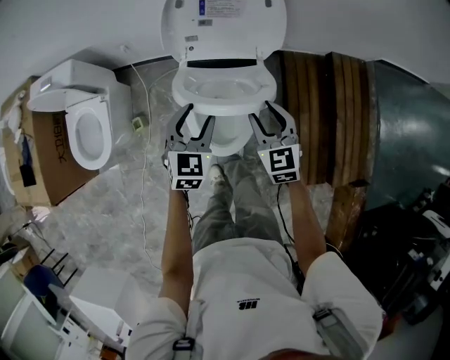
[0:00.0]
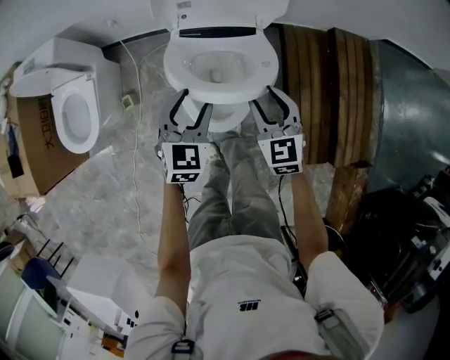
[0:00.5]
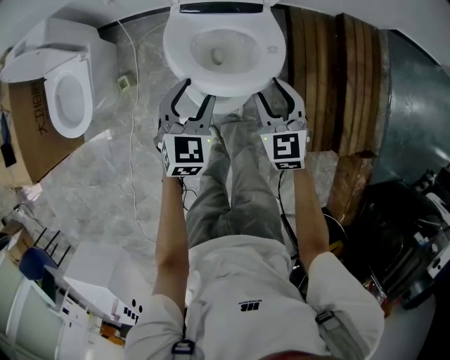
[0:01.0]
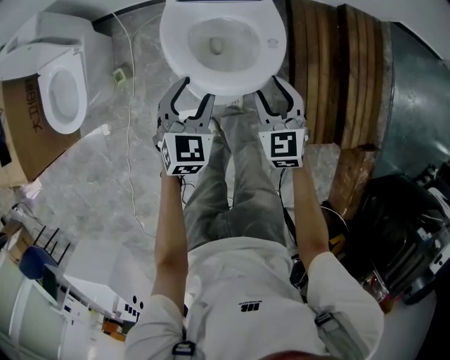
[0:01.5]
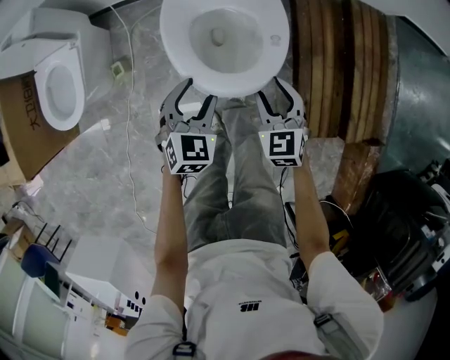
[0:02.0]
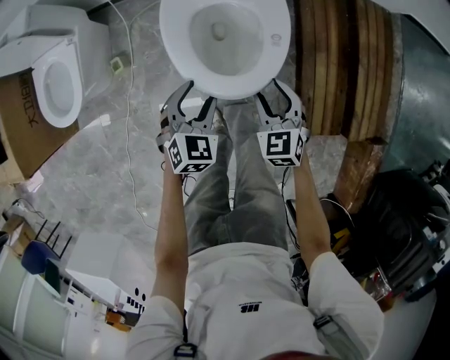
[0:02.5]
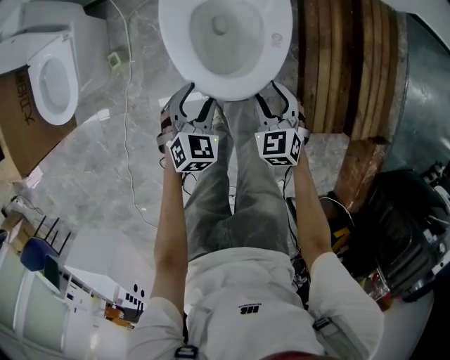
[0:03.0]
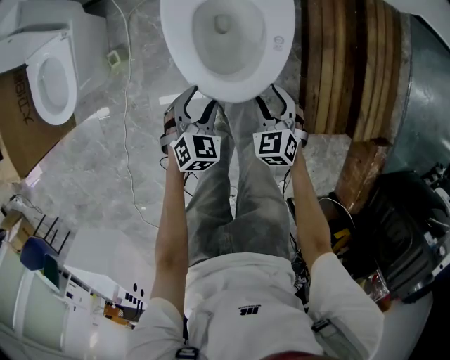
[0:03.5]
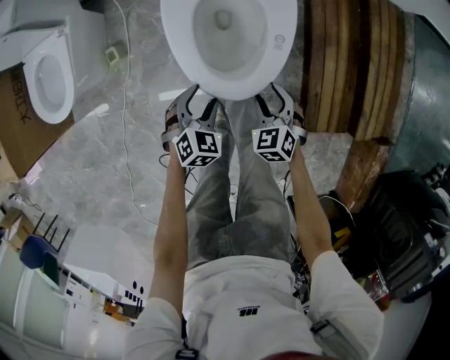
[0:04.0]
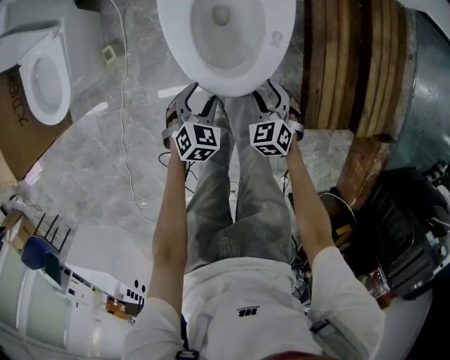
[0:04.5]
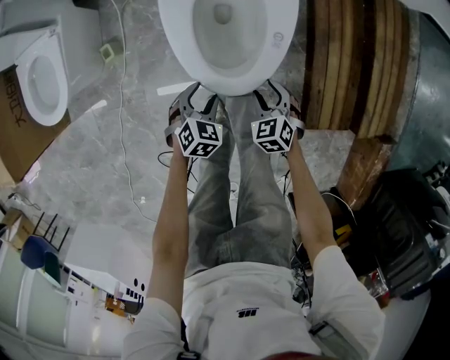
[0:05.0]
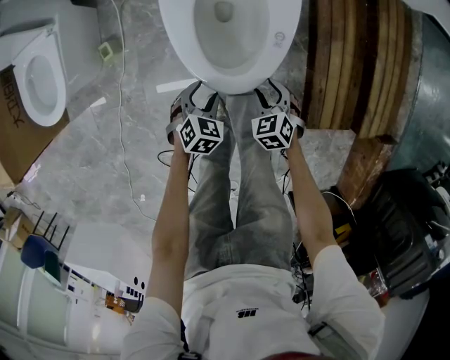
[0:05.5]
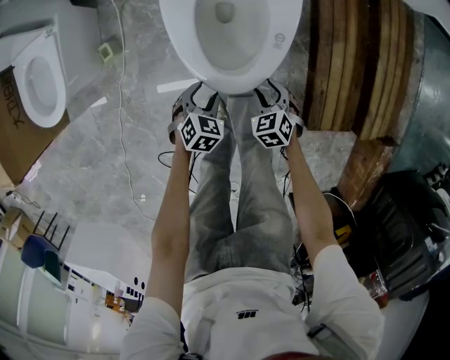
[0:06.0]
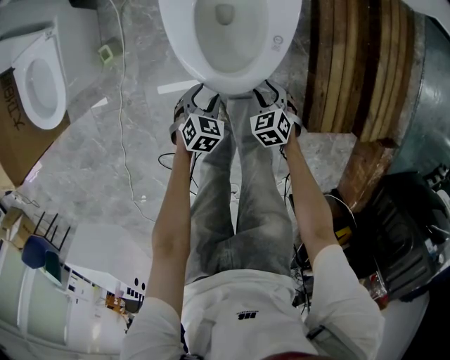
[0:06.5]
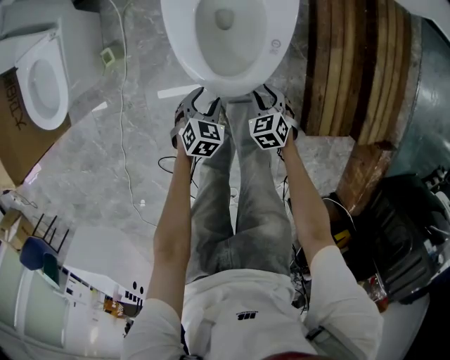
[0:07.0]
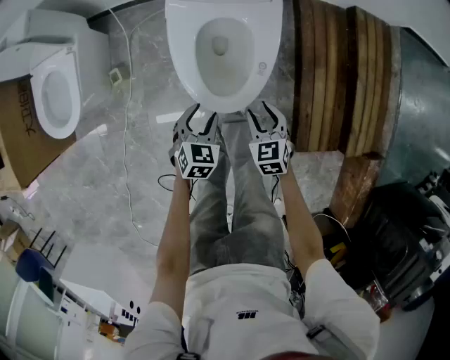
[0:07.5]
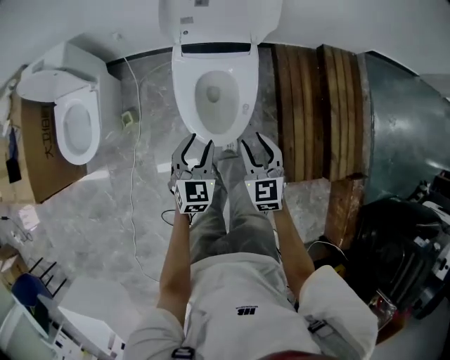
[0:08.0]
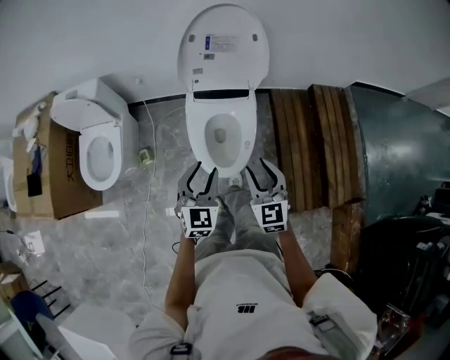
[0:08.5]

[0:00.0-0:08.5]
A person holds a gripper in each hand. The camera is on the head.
0:00.0 to 0:02.0: The two grippers go approximately 20 cm downward and backward.
0:02.0 to 0:04.0: The right gripper travels downward by roughly 15 cm. Meanwhile the left gripper shifts some 15 cm downward and backward.
0:04.0 to 0:06.5: Both grippers travel together downward, approximately 15 cm.
0:06.5 to 0:08.5: Both grippers travel together upward, about 50 cm. The left gripper points its fingers roughly 40 degrees further upward, while the right gripper angles its fingers upward, by some 40 degrees.

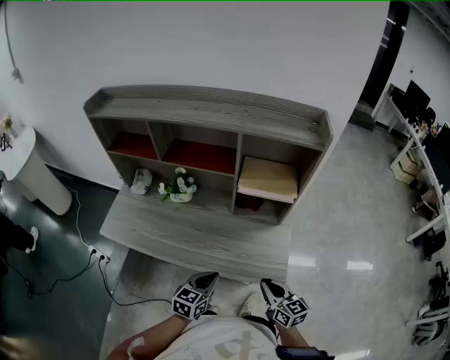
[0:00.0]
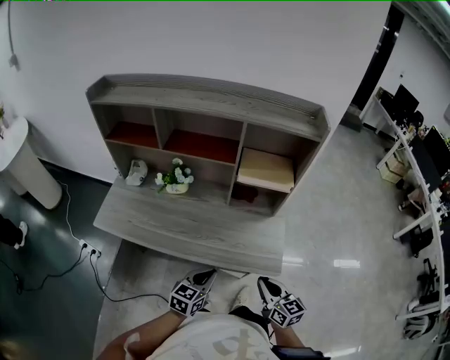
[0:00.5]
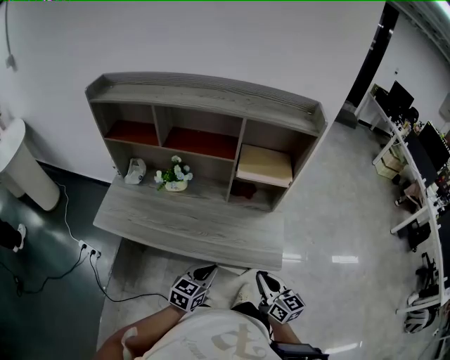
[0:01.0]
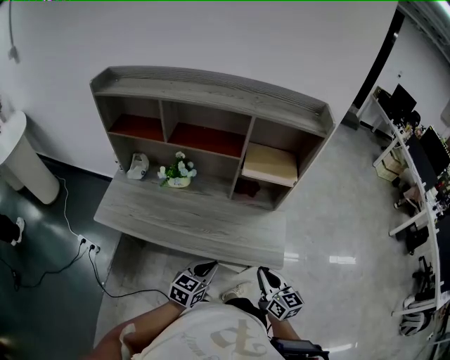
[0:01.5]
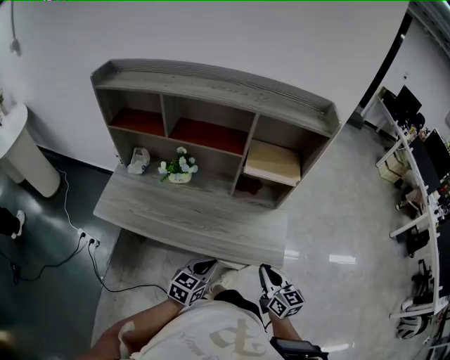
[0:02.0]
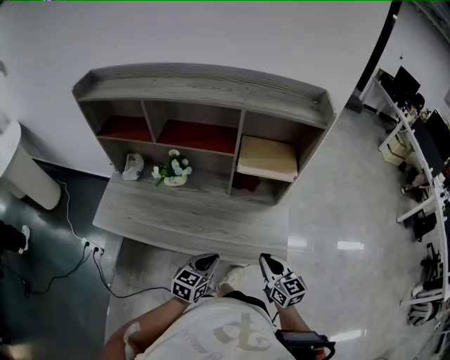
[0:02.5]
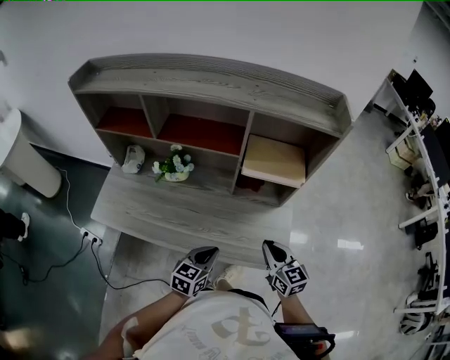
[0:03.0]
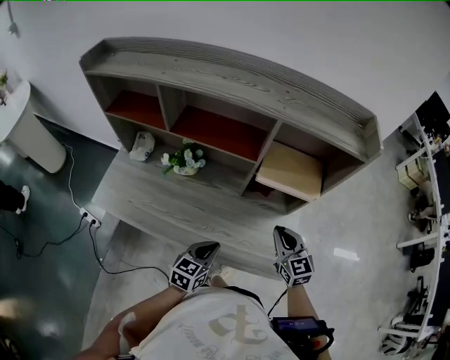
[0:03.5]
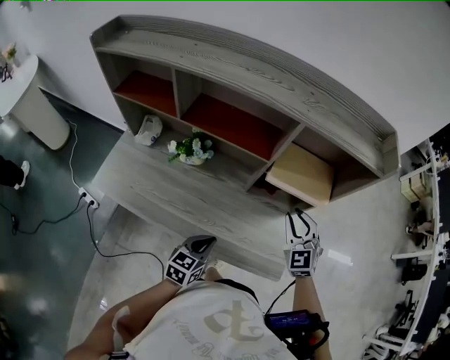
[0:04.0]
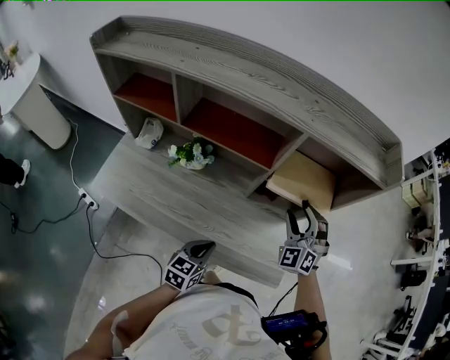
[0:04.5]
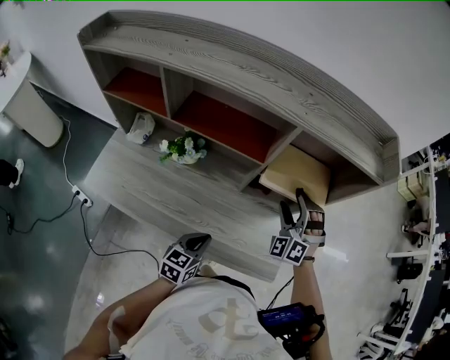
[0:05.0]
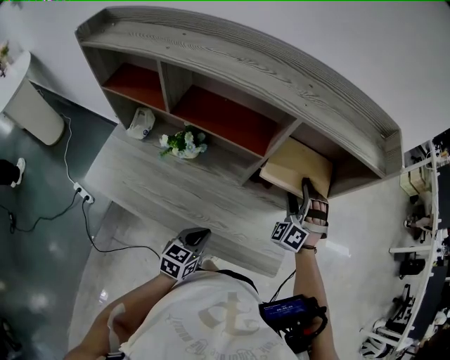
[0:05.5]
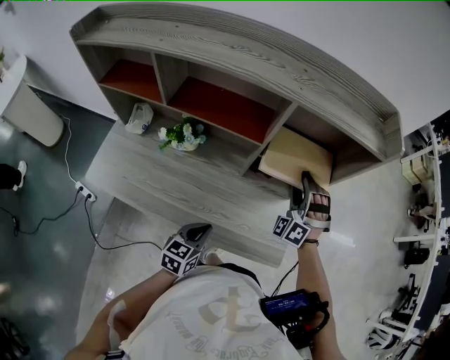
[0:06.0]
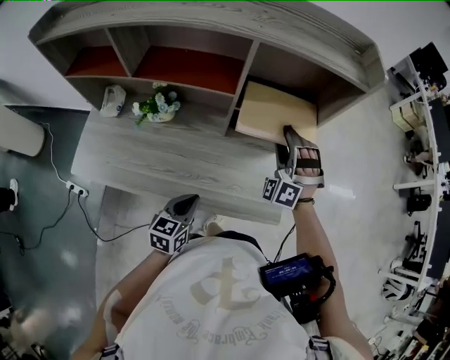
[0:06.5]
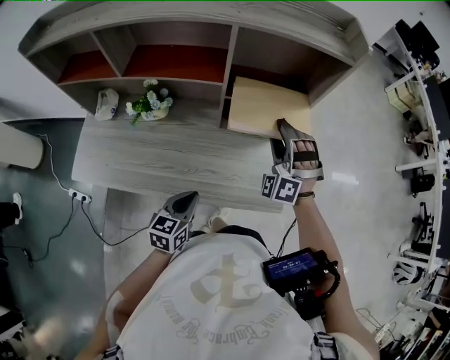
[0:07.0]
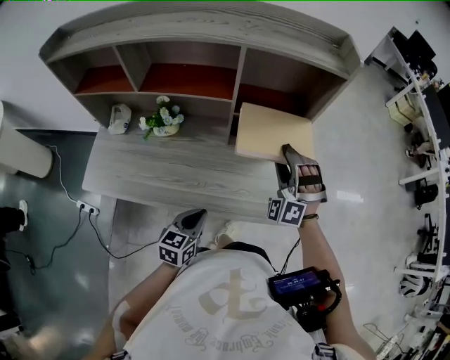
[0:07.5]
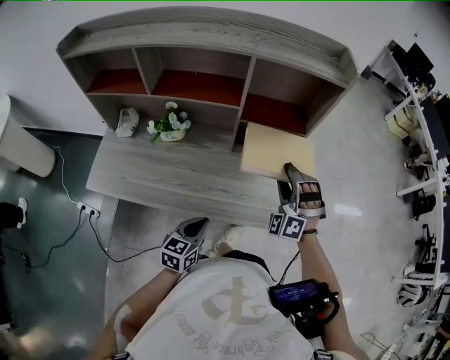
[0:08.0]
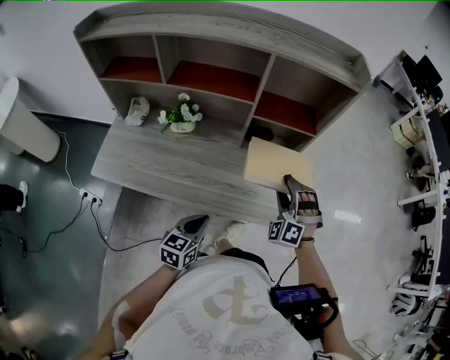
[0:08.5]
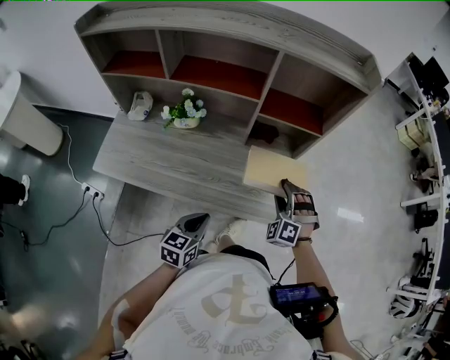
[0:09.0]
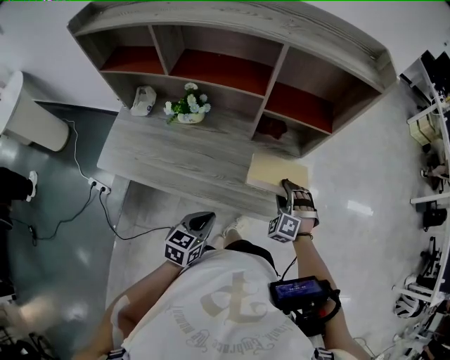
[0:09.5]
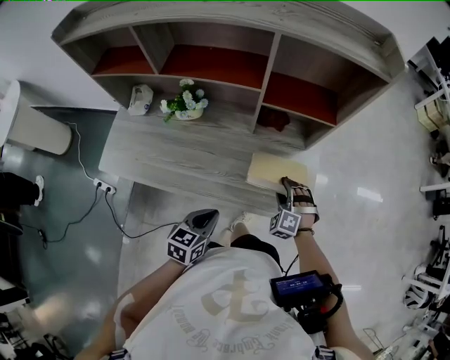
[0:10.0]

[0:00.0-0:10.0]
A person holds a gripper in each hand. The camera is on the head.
0:00.0 to 0:02.0: The left gripper shifts by roughly 5 cm, while the right gripper shifts by some 5 cm.
0:02.0 to 0:04.0: The left gripper heads forward, covering roughly 15 cm. The right gripper travels forward by some 30 cm, and rotates around the line of its fingers by about 50 degrees, counterclockwise from behind.
0:04.0 to 0:06.0: The right gripper moves forward, roughly 5 cm, twists roughly 50 degrees counterclockwise, seen from behind, and opens.
0:06.0 to 0:08.0: The right gripper goes about 15 cm backward, while the left gripper is displaced backward by approximately 10 cm.
0:08.0 to 0:10.0: The right gripper travels downward by some 25 cm, and turns by some 30 degrees.

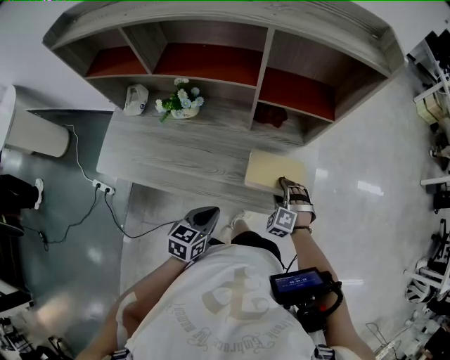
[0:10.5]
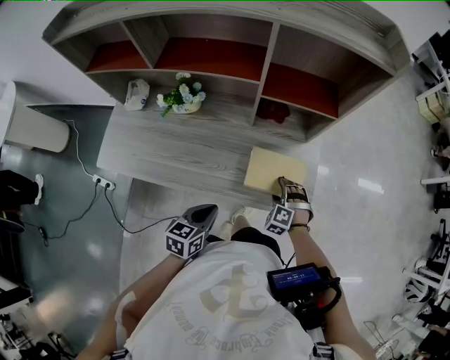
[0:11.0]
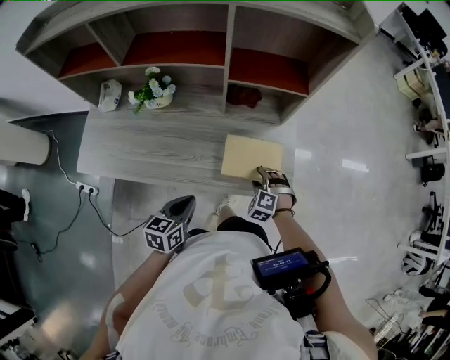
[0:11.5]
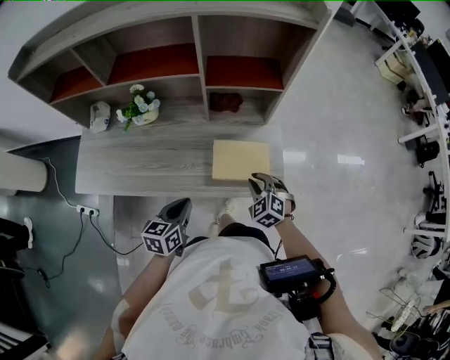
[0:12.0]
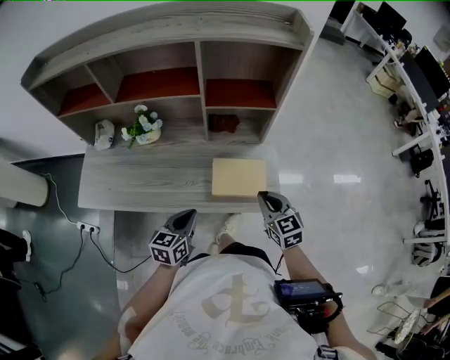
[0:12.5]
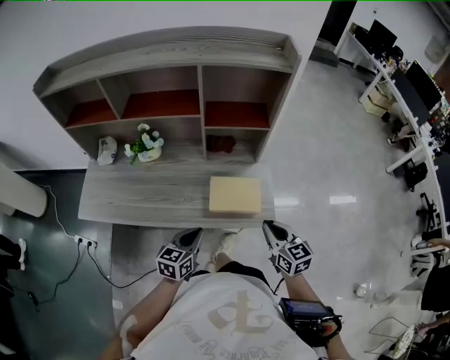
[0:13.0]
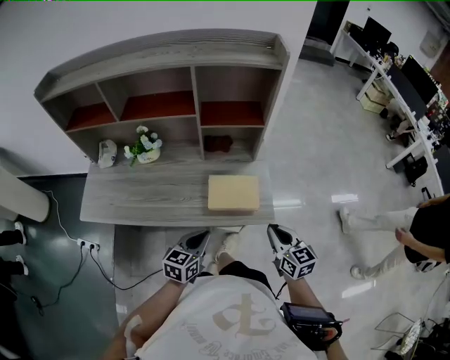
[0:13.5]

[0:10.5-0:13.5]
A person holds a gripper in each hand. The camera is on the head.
0:10.5 to 0:12.0: The right gripper moves some 5 cm, rotates roughly 30 degrees, and closes its fingers.
0:12.0 to 0:13.5: The left gripper heads to the right, covering about 10 cm, while the right gripper travels upward, backward and to the right by some 20 cm, and rotates around the line of its fingers by about 50 degrees, clockwise from behind.

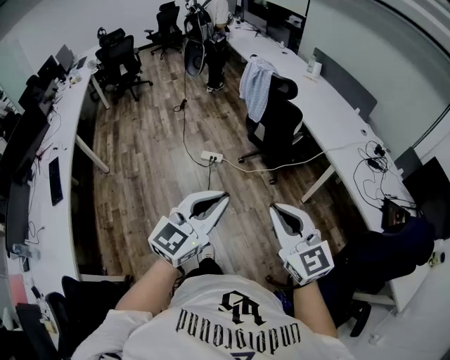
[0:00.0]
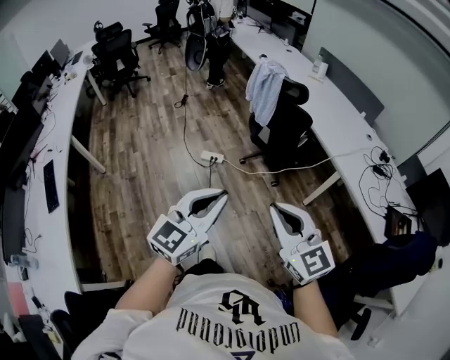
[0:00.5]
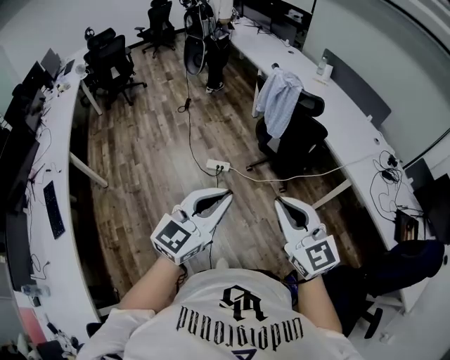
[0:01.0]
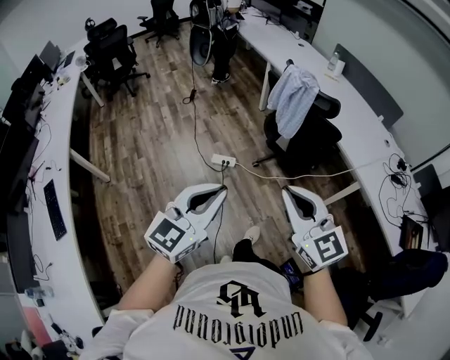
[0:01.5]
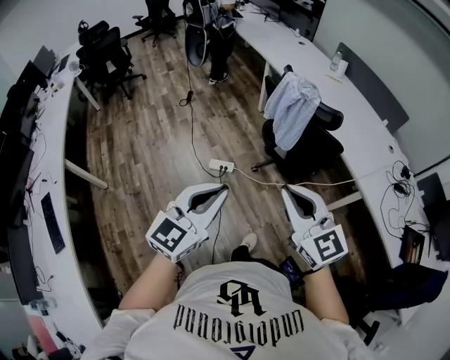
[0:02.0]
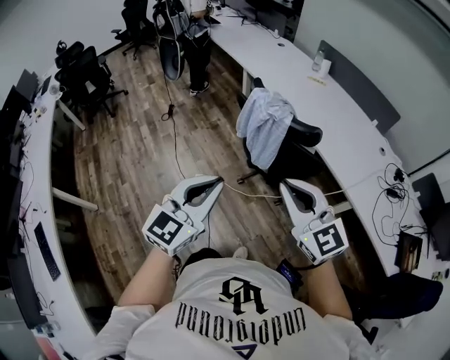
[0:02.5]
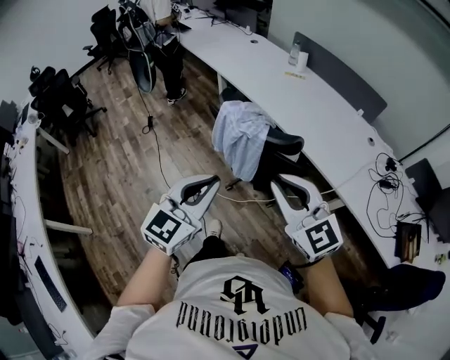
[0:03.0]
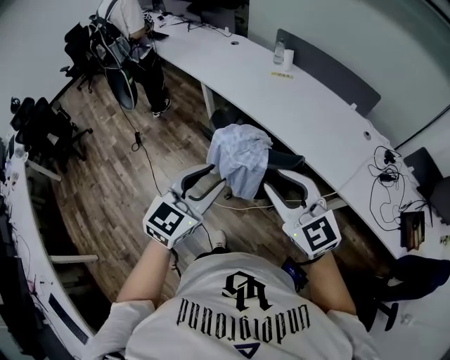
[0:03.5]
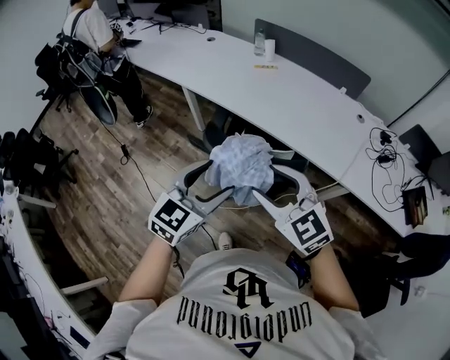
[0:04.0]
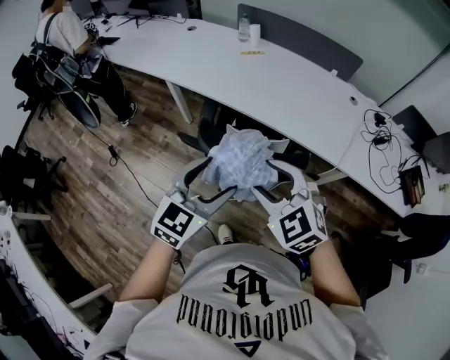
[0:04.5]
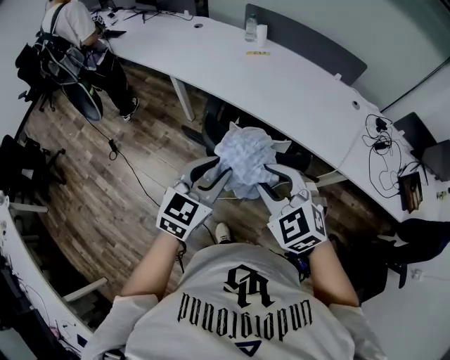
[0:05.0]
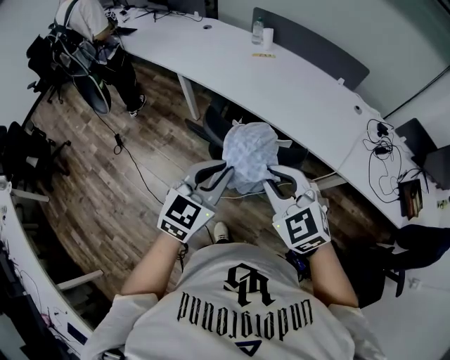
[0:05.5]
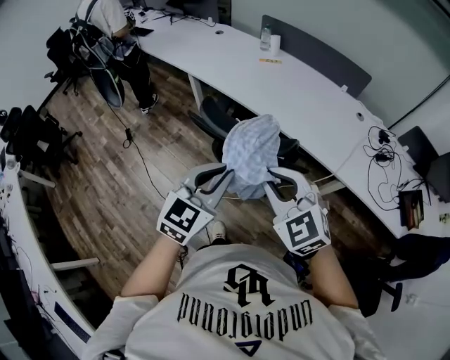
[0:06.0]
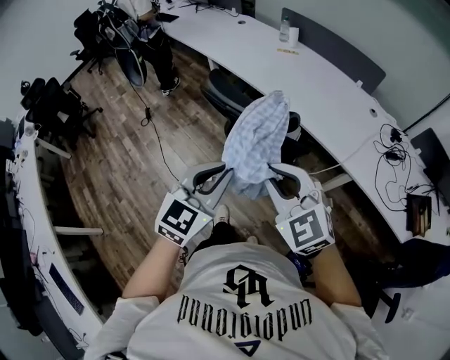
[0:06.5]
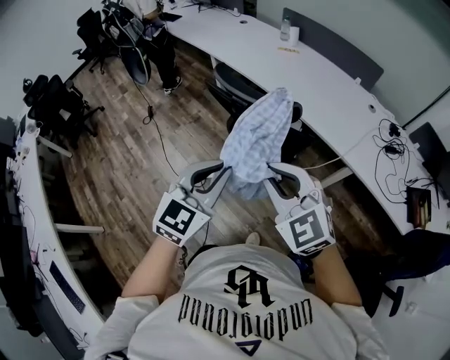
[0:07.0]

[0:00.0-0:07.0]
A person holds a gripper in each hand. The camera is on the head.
0:00.0 to 0:02.0: Both grippers move forward and to the left, about 35 cm.
0:02.0 to 0:03.5: Both grippers move forward, some 35 cm. The right gripper opens, while the left gripper turns by some 20 degrees.
0:03.5 to 0:05.0: The left gripper travels forward and downward by about 10 cm, and opens, then closes again, while the right gripper travels downward, forward and to the left by approximately 10 cm, swivels some 30 degrees, and opens, then closes again.
0:05.0 to 0:07.0: Both grippers travel together backward, some 25 cm. The right gripper changes its angle by some 20 degrees, and closes up.
